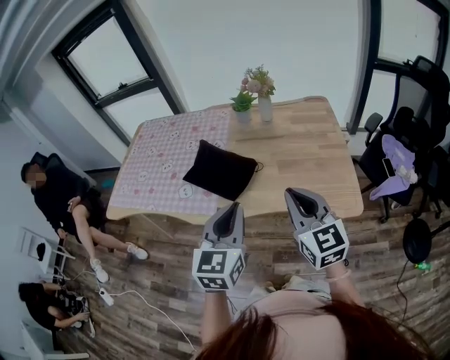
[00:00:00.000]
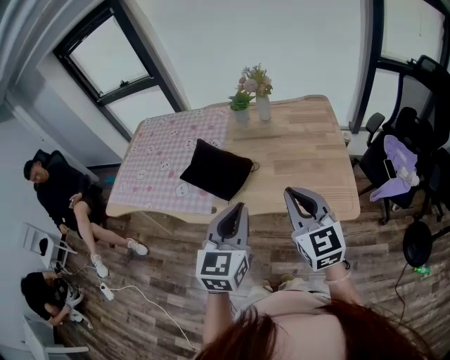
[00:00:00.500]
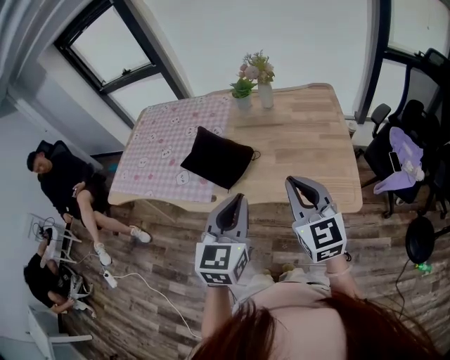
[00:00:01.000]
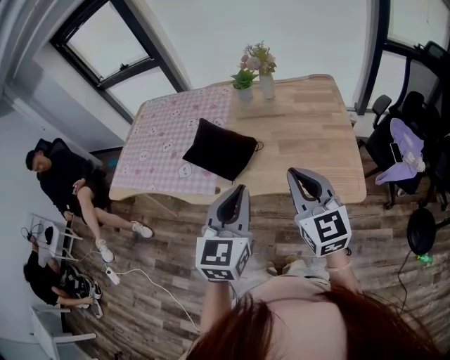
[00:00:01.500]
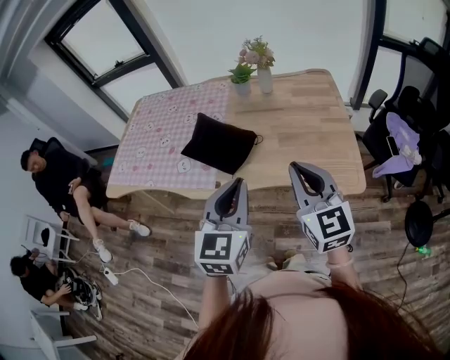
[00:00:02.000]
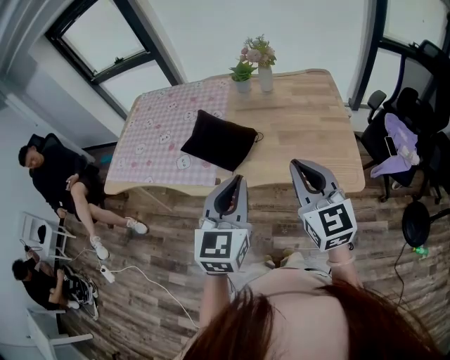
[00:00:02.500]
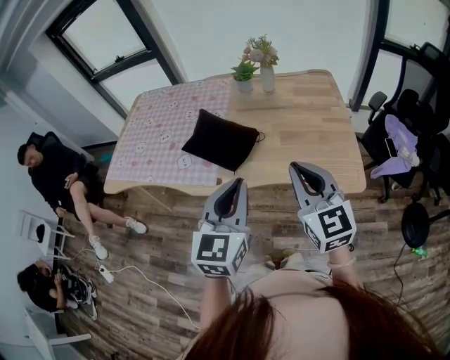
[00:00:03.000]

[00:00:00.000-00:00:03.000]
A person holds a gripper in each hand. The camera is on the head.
00:00:00.000 to 00:00:03.000: The grippers make only small movements.

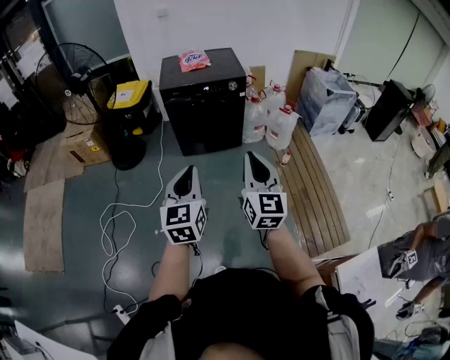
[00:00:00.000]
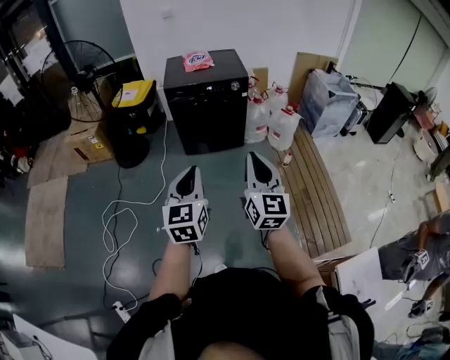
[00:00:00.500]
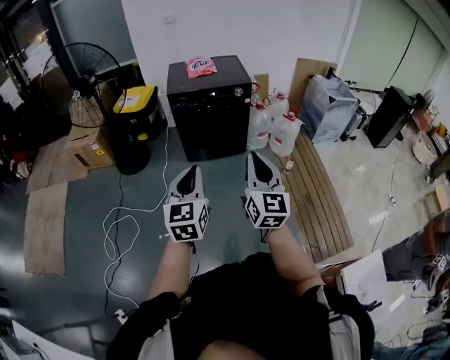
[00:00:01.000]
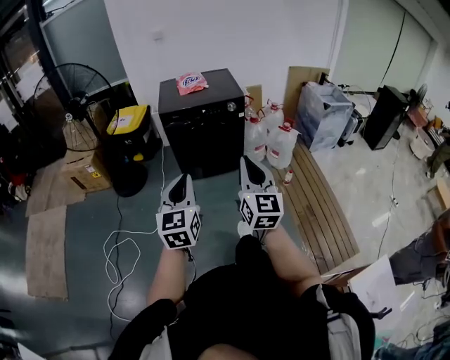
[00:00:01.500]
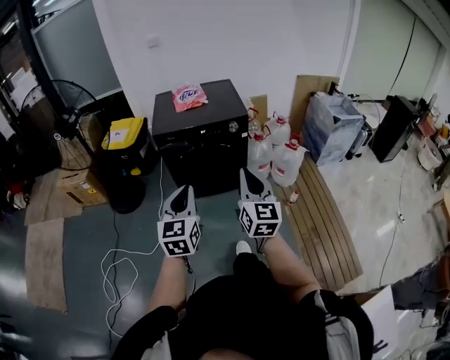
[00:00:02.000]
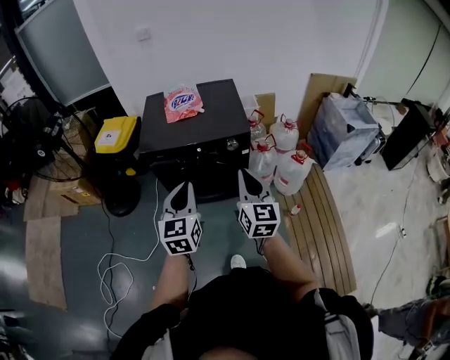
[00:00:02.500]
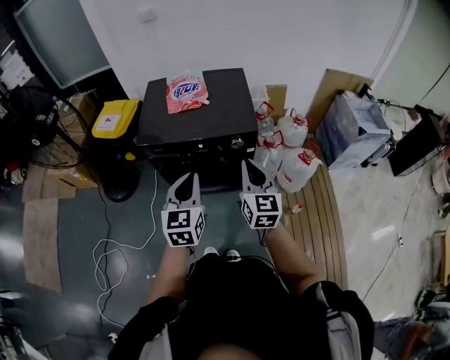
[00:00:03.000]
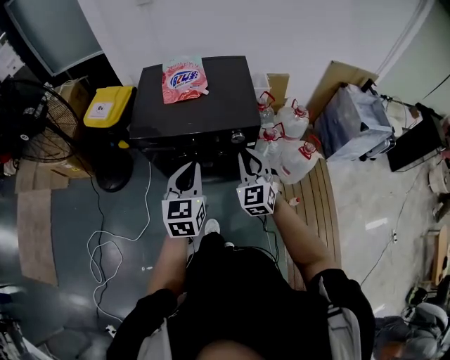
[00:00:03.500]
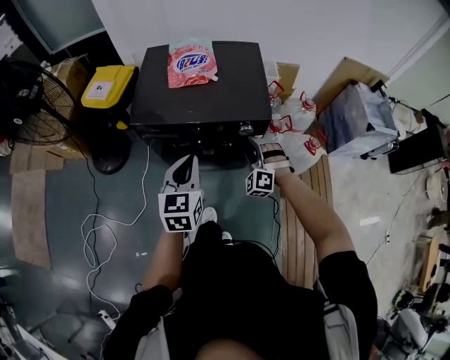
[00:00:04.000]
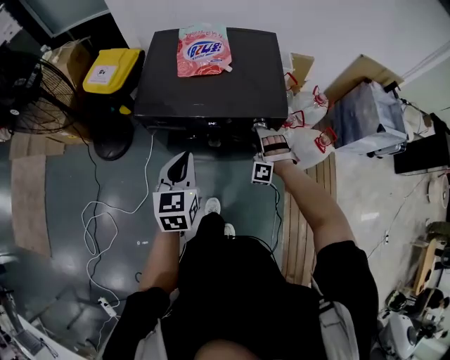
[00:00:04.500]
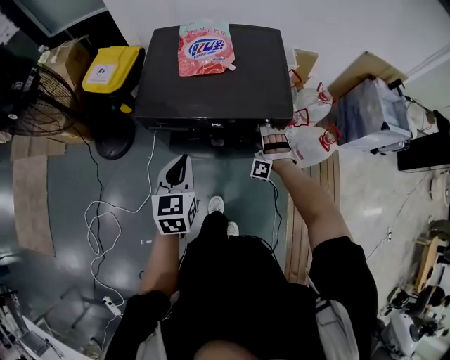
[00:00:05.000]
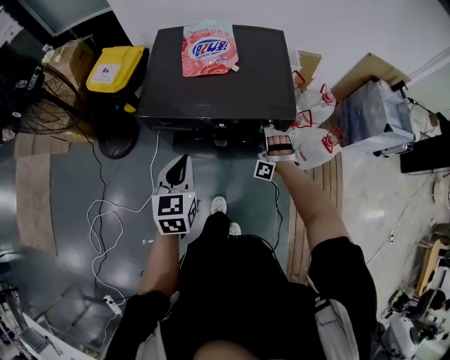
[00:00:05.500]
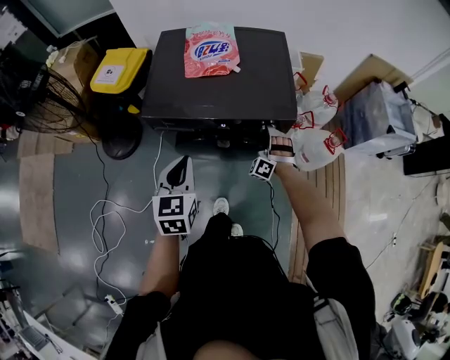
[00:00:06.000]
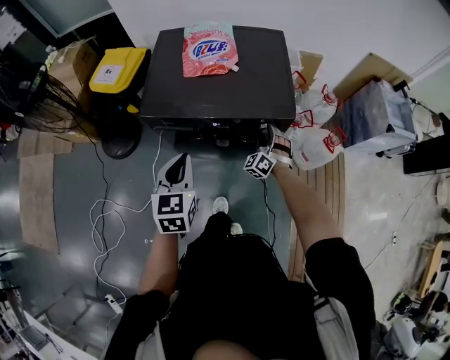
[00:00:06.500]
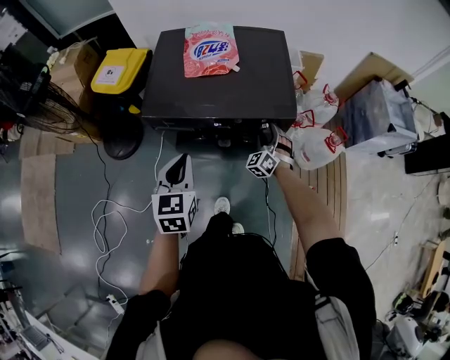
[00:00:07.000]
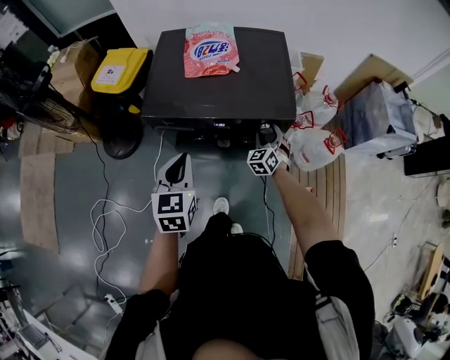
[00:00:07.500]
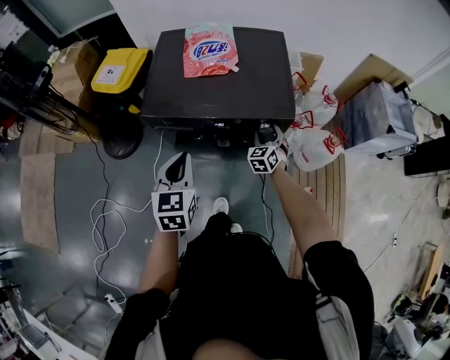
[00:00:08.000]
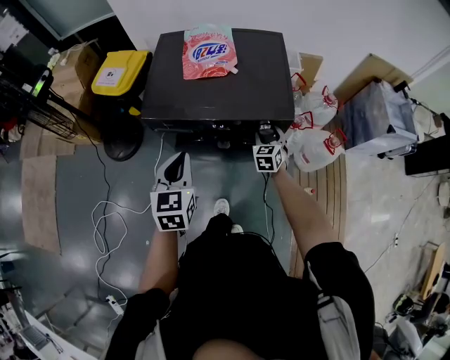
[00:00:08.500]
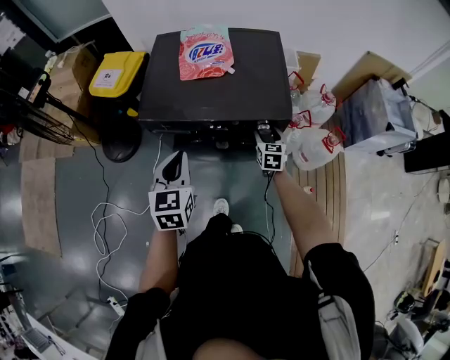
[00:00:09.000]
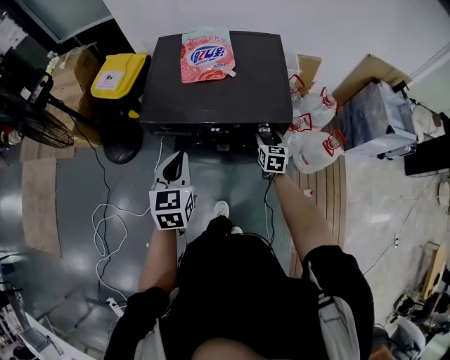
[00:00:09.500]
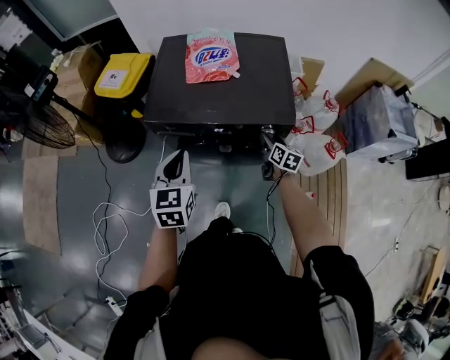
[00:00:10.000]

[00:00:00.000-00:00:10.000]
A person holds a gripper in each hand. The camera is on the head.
00:00:00.000 to 00:00:02.000: The two grippers go about 25 cm forward.
00:00:02.000 to 00:00:04.000: The left gripper is displaced forward by about 40 cm, while the right gripper shifts some 50 cm forward and downward, rotates around the line of its fingers by approximately 80 degrees, counterclockwise from behind, and opens its fingers.
00:00:04.000 to 00:00:06.000: The right gripper goes some 15 cm forward and downward, while the left gripper is displaced to the left by roughly 5 cm.
00:00:06.000 to 00:00:08.000: The right gripper rolls clockwise, seen from behind, by approximately 50 degrees.
00:00:08.000 to 00:00:10.000: The right gripper twists roughly 50 degrees clockwise, seen from behind.

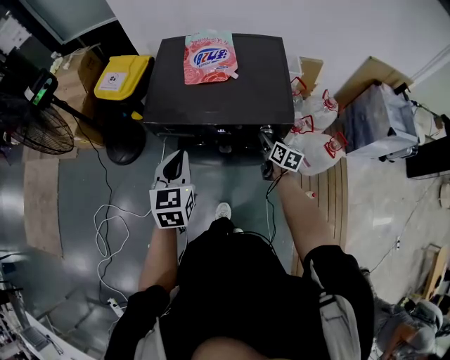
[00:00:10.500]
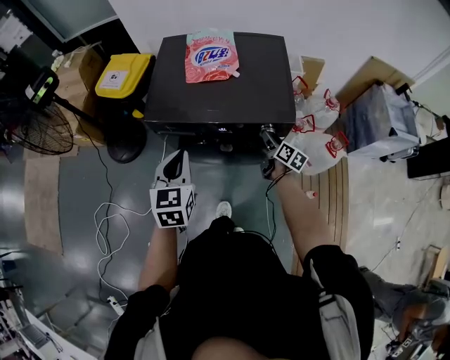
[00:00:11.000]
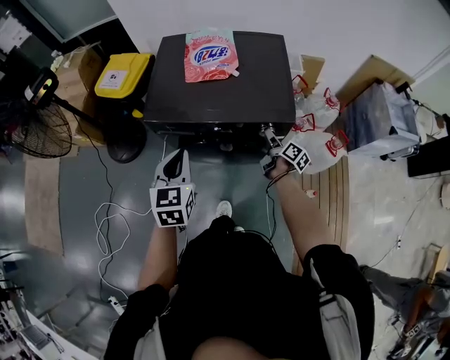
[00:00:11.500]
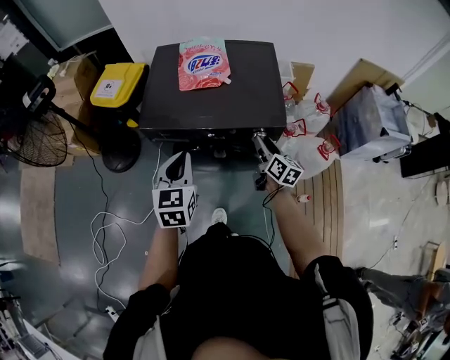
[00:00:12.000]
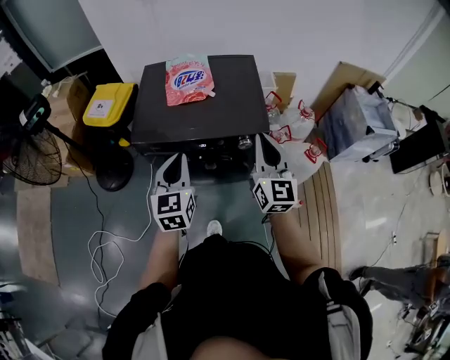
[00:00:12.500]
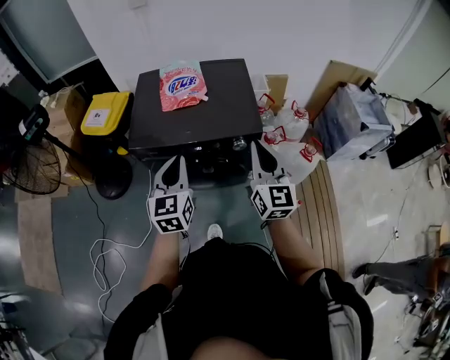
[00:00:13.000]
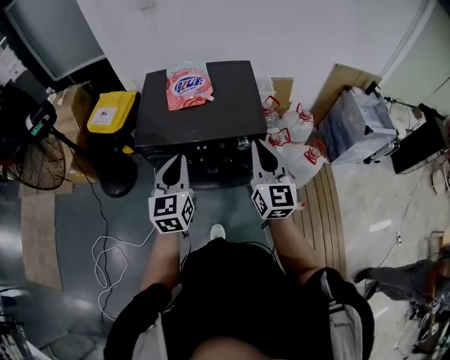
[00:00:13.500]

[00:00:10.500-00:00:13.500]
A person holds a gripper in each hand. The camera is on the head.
00:00:10.500 to 00:00:12.000: The right gripper moves upward, roughly 10 cm.
00:00:12.000 to 00:00:13.500: The left gripper heads upward, covering approximately 5 cm. The right gripper heads upward and backward, covering about 25 cm, changes its angle by about 40 degrees, and closes up.

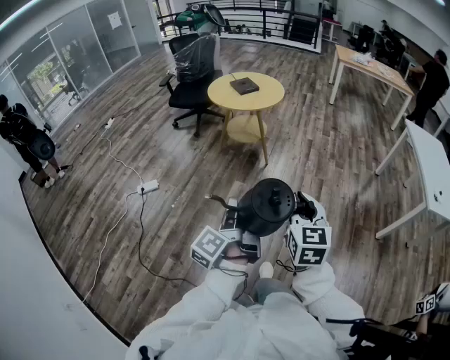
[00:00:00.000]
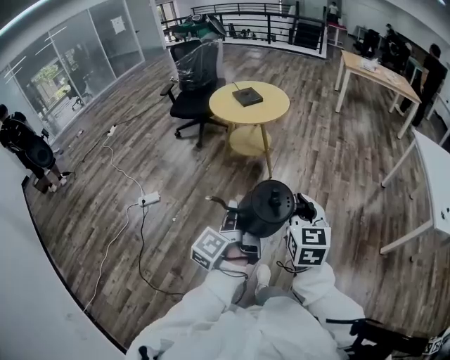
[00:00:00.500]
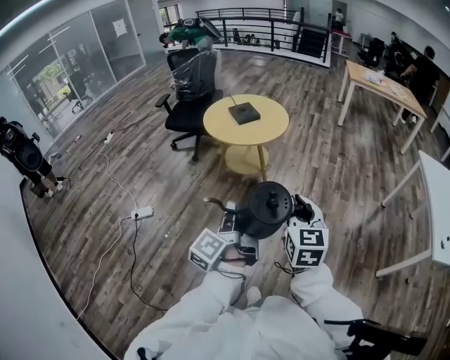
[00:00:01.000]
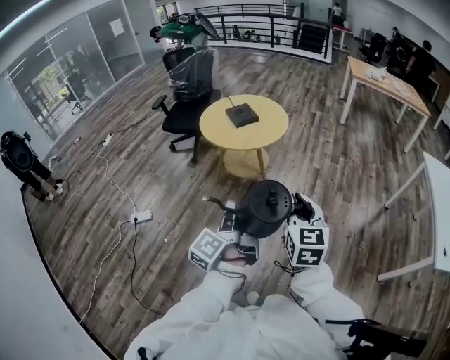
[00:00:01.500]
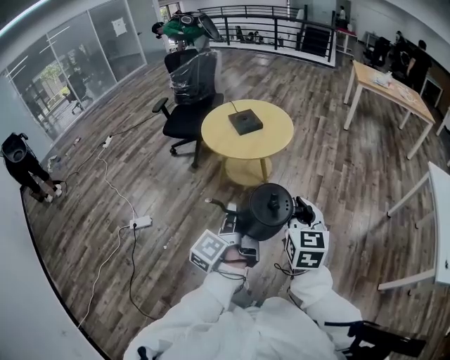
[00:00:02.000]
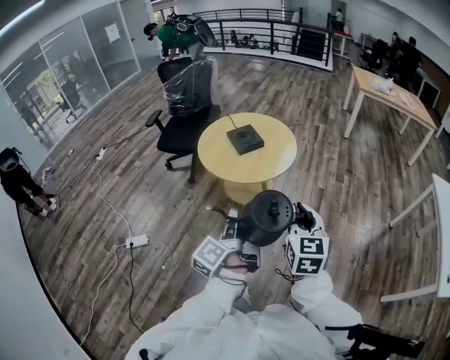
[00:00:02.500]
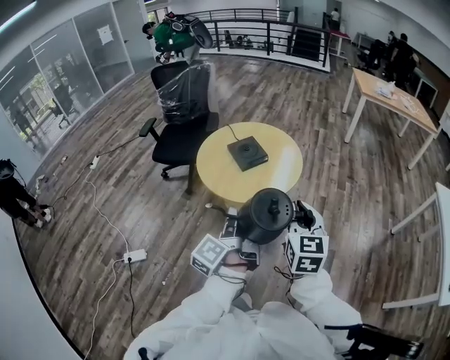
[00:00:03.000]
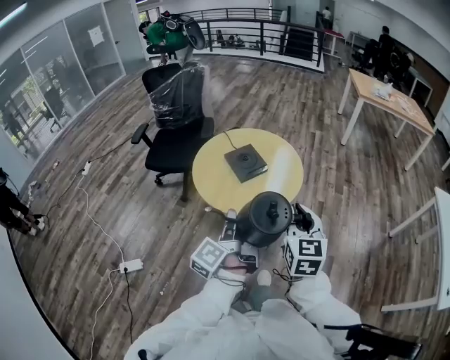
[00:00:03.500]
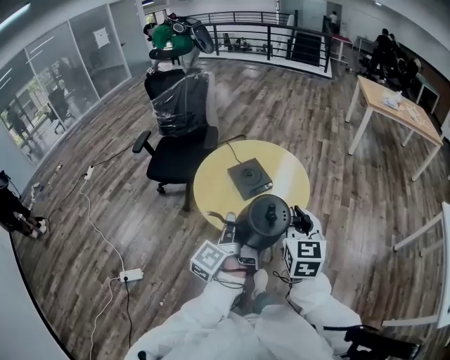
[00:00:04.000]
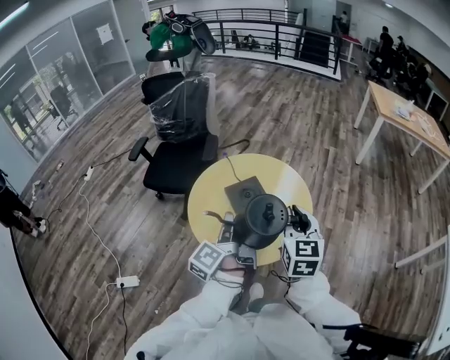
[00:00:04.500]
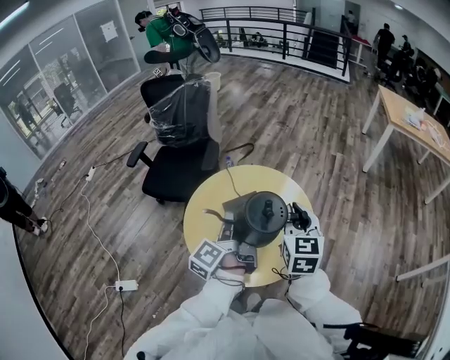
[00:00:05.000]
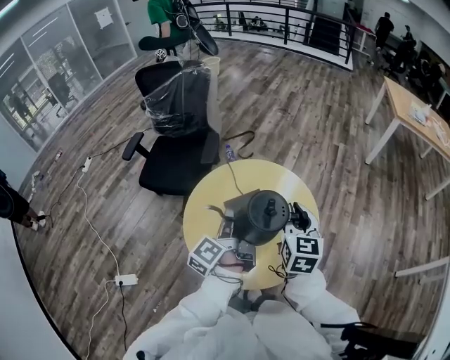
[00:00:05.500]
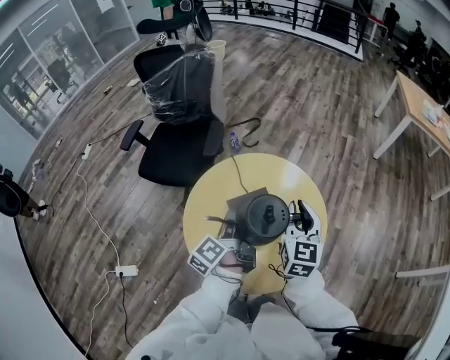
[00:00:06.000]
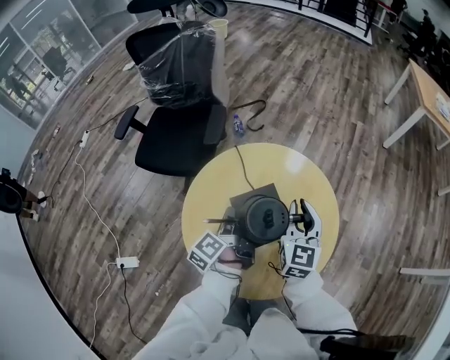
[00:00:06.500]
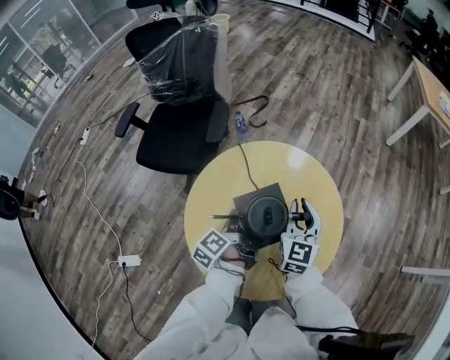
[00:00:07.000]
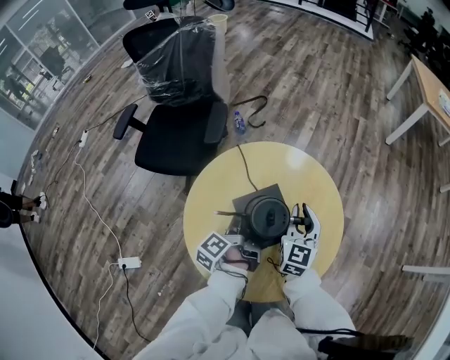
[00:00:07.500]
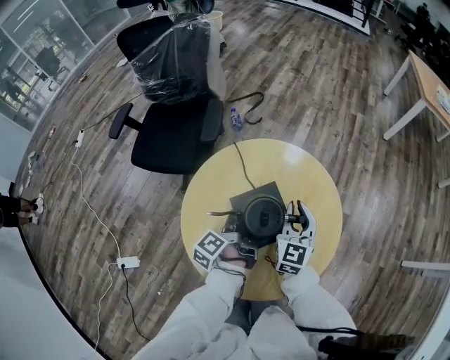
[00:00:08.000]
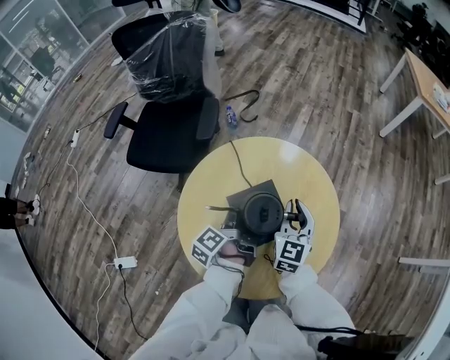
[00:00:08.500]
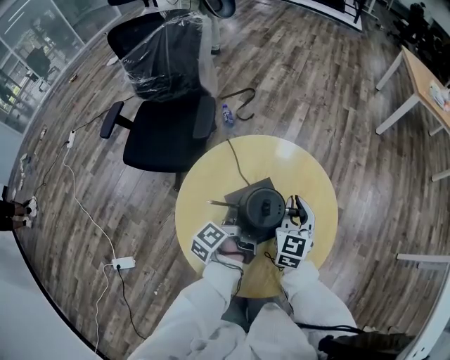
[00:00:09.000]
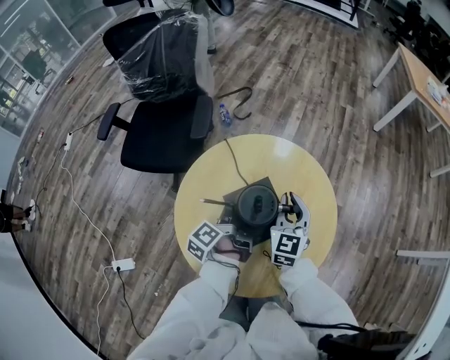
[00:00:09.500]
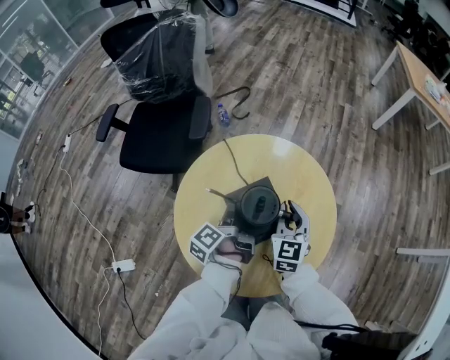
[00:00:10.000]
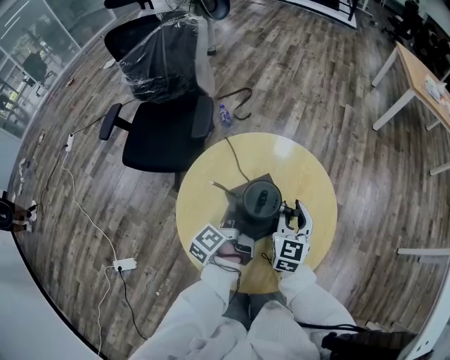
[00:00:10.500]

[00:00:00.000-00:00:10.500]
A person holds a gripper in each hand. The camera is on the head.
00:00:00.000 to 00:00:02.000: The pair of grippers is taken forward, about 40 cm.
00:00:02.000 to 00:00:04.000: The pair of grippers is taken forward, approximately 40 cm.
00:00:04.000 to 00:00:06.500: The right gripper shifts about 40 cm forward. The left gripper moves forward and downward, approximately 40 cm, and changes its angle by some 20 degrees.
00:00:06.500 to 00:00:08.500: Both grippers move downward, roughly 5 cm.
00:00:08.500 to 00:00:10.500: The grippers move only a little.
